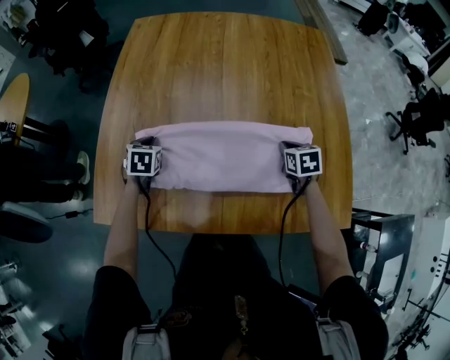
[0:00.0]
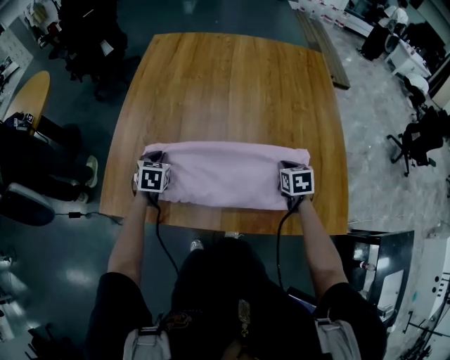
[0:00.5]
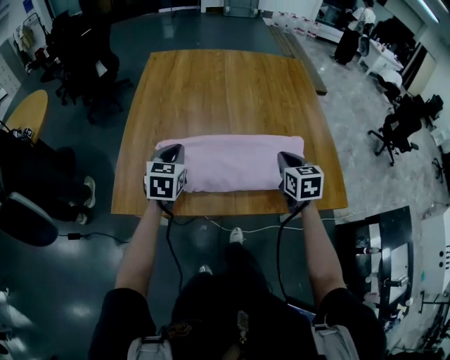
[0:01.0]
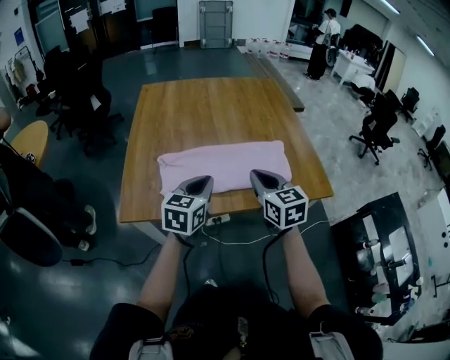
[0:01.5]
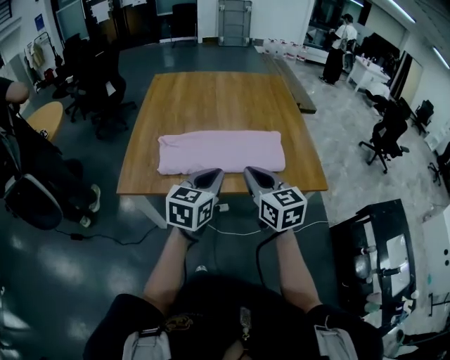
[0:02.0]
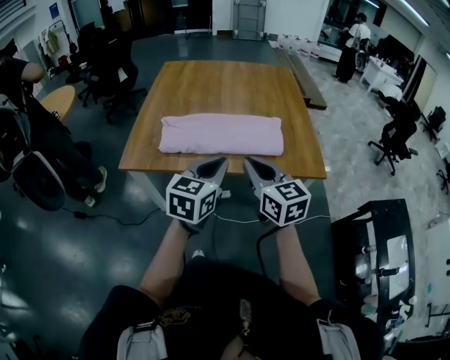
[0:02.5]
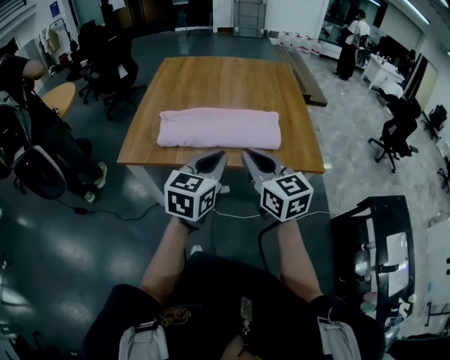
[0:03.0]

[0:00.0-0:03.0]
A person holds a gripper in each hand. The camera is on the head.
0:00.0 to 0:01.5: The right gripper heads backward, upward and to the left, covering approximately 40 cm, and angles its fingers upward, by about 40 degrees. The left gripper heads backward, upward and to the right, covering some 40 cm, and points its fingers approximately 30 degrees further upward.
0:01.5 to 0:03.0: The left gripper travels backward, to the right and upward by some 20 cm. The right gripper travels backward and upward by roughly 15 cm.

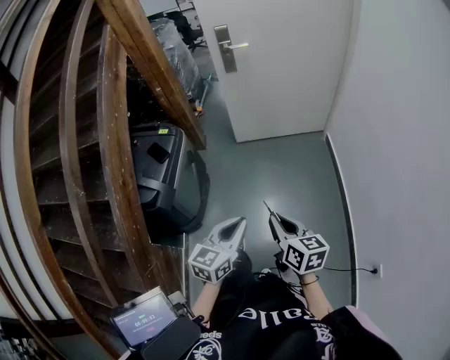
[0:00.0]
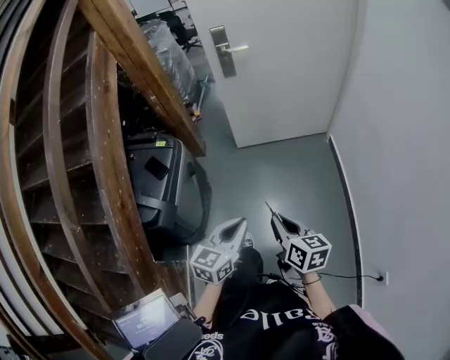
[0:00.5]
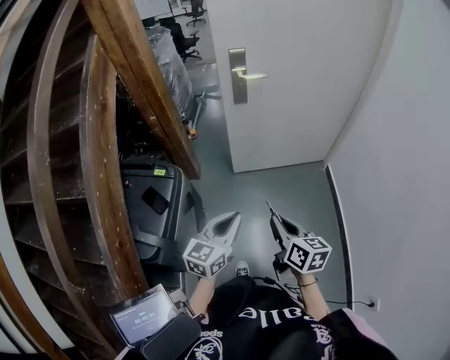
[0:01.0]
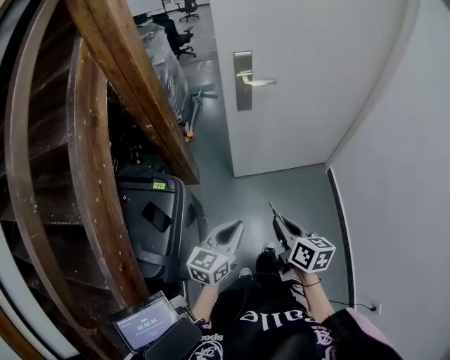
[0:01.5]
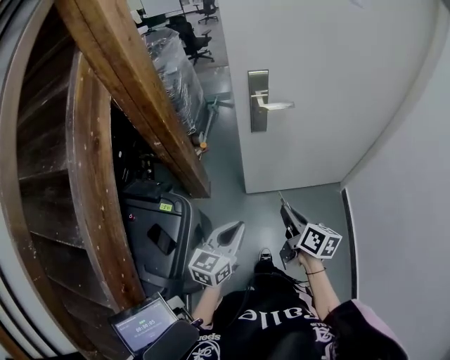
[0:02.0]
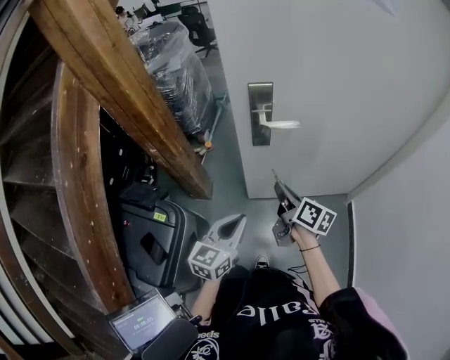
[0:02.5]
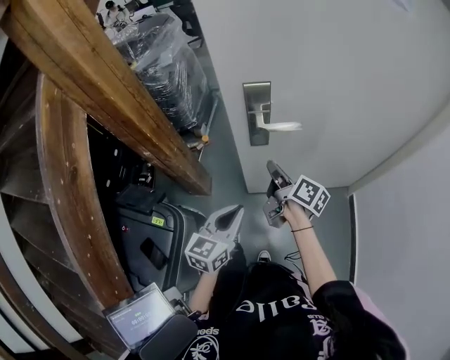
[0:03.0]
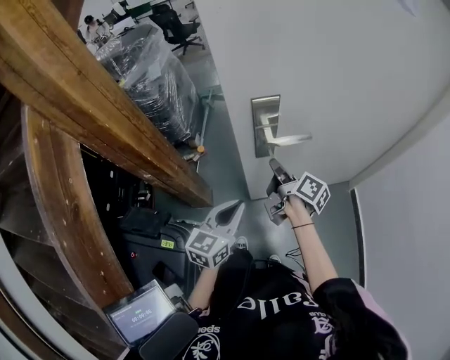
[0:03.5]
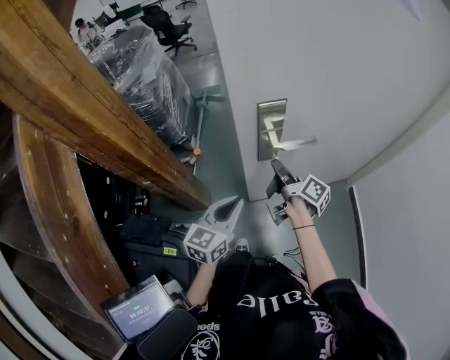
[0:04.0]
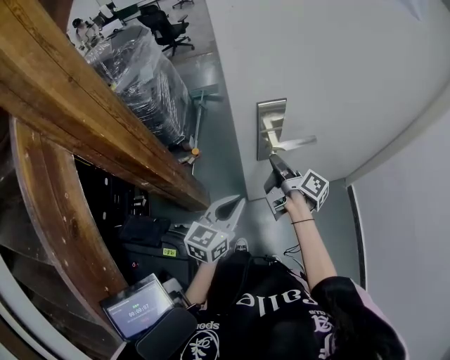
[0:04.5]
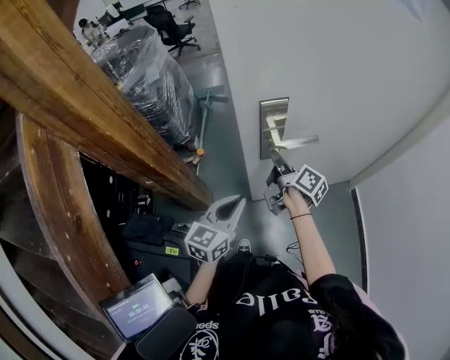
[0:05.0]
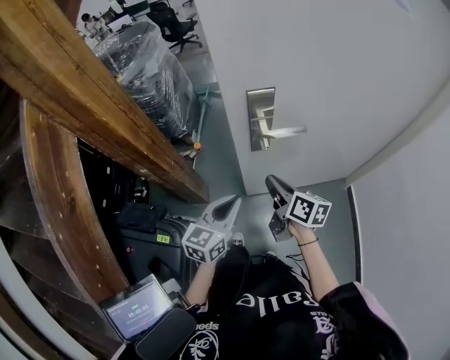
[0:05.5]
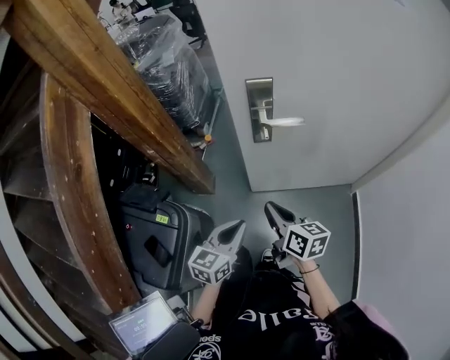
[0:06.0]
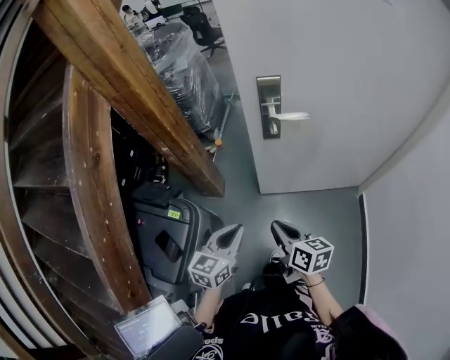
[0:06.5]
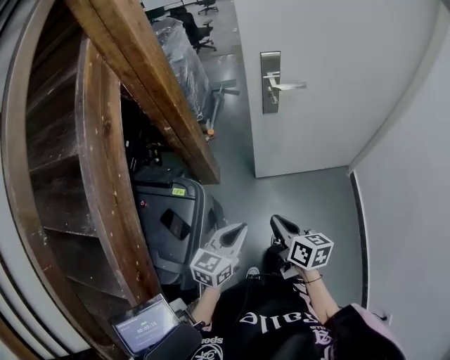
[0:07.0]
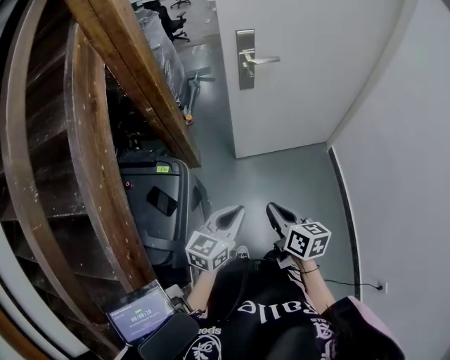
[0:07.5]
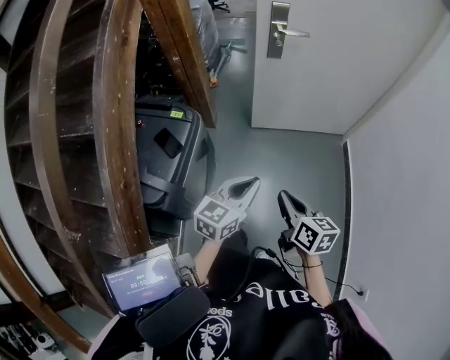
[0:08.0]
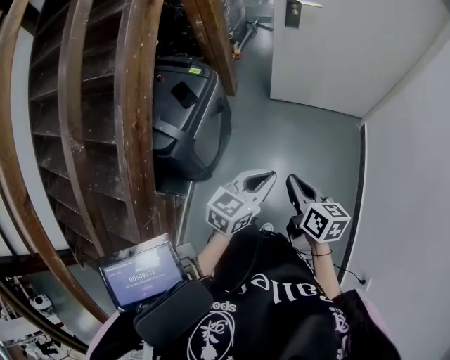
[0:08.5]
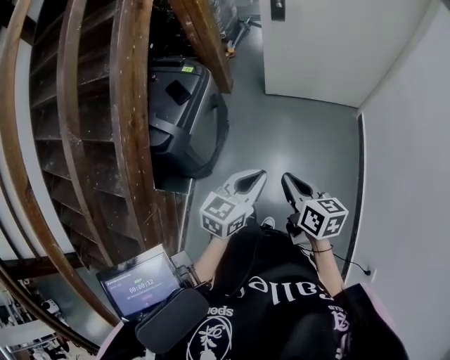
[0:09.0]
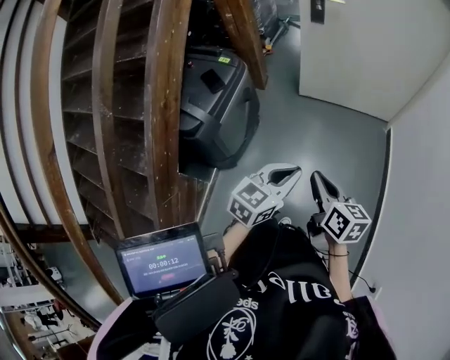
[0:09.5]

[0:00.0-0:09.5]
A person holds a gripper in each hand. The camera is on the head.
0:00.0 to 0:02.0: The pair of grippers is taken forward, roughly 50 cm.
0:02.0 to 0:04.0: The grippers both shift forward by roughly 30 cm. The right gripper rotates roughly 40 degrees.
0:04.0 to 0:05.5: The right gripper travels backward by some 10 cm, and rotates about 40 degrees.
0:05.5 to 0:07.5: Both grippers move backward, about 40 cm.
0:07.5 to 0:09.5: Both grippers travel together backward and to the right, roughly 30 cm.

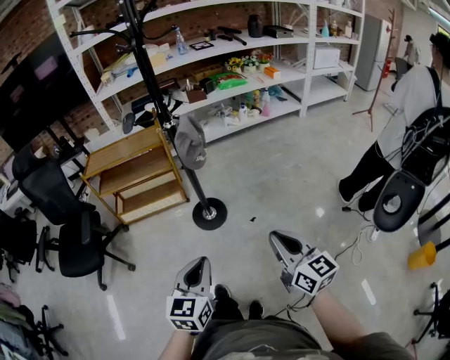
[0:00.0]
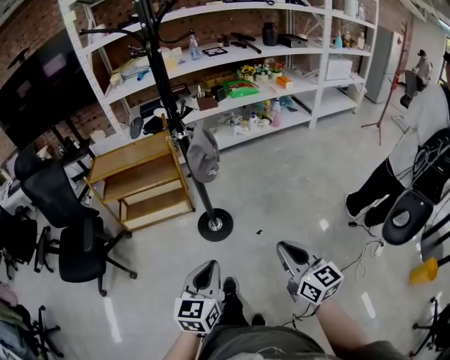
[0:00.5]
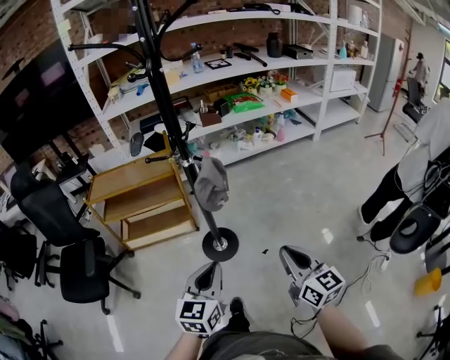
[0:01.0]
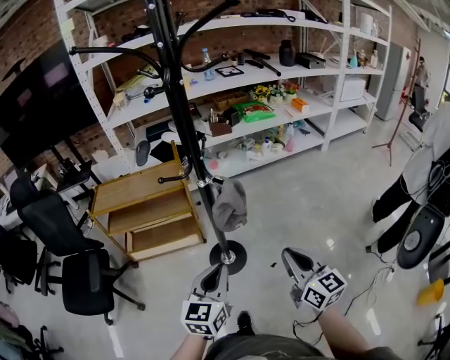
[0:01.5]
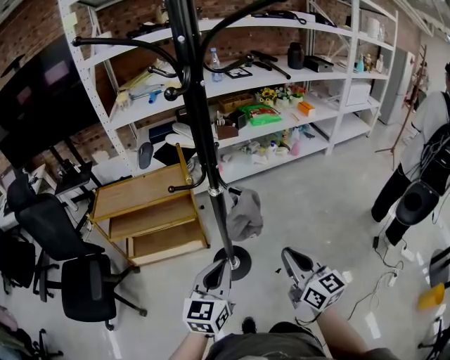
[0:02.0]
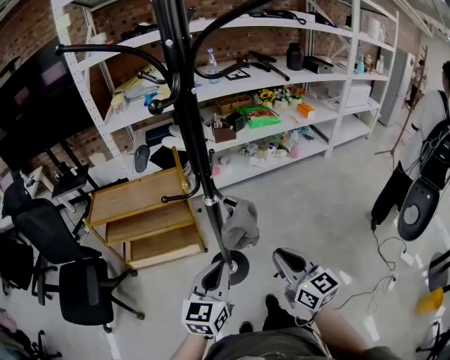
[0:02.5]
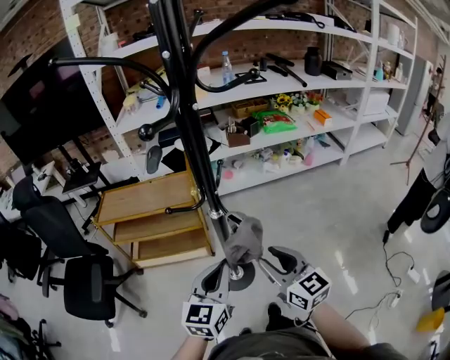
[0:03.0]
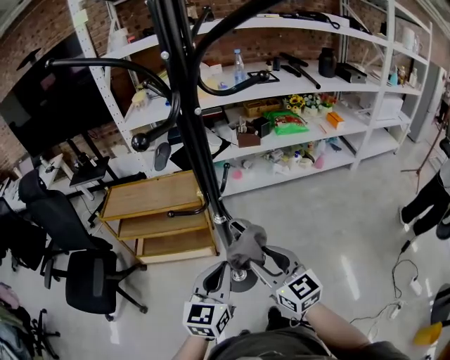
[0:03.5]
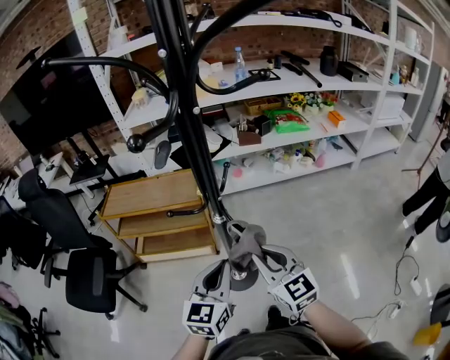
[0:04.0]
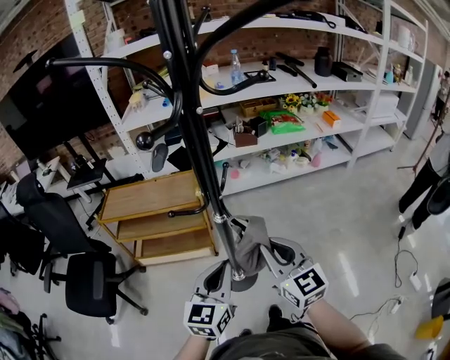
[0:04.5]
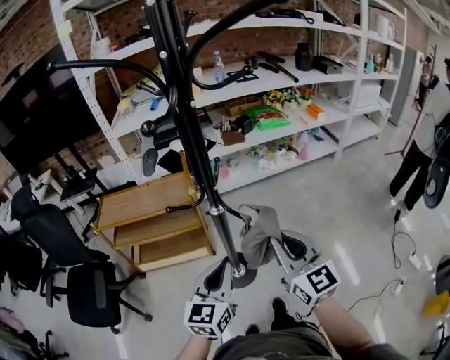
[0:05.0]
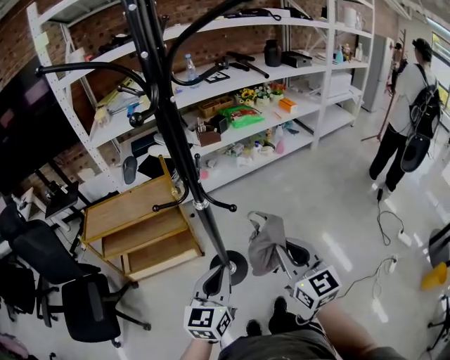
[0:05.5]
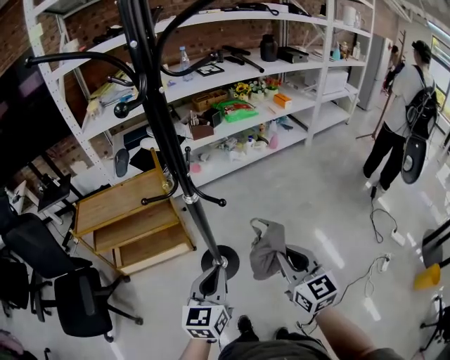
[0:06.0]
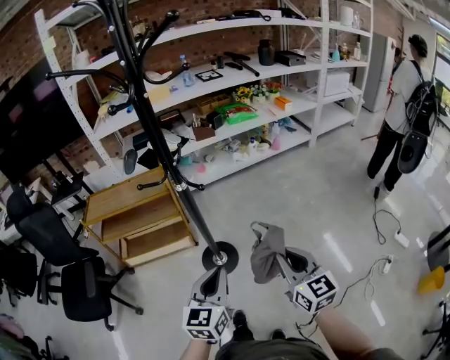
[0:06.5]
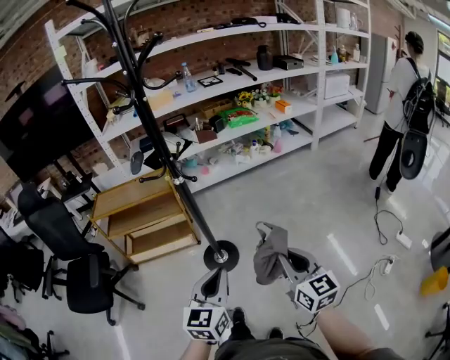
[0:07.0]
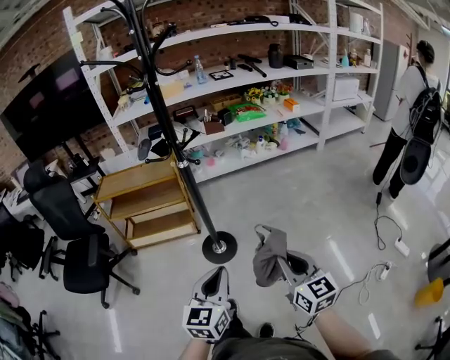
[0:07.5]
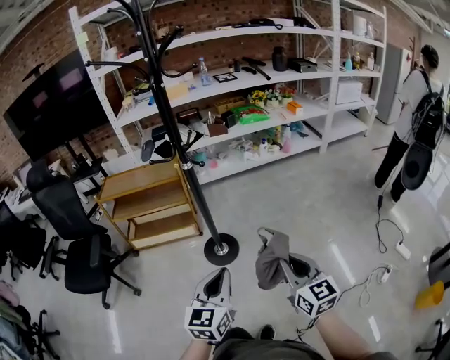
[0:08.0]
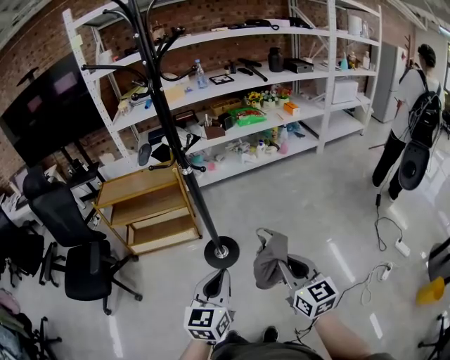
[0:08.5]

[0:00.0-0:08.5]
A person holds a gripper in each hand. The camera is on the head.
0:00.0 to 0:02.0: The two grippers go about 30 cm forward.
0:02.0 to 0:04.0: The left gripper moves forward, approximately 10 cm. The right gripper shifts some 15 cm forward and to the left, swivels some 30 degrees, and opens, then closes once more.
0:04.0 to 0:06.5: The left gripper travels backward by some 20 cm, while the right gripper is displaced backward and to the right by roughly 25 cm, and changes its angle by some 20 degrees.
0:06.5 to 0:08.5: Both grippers travel together backward, some 10 cm.

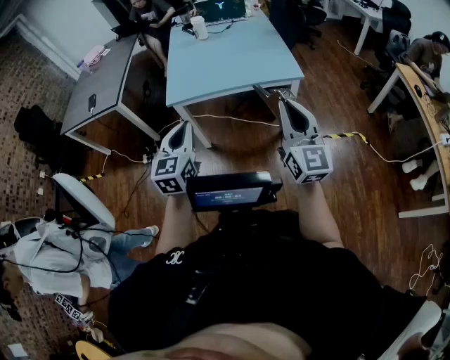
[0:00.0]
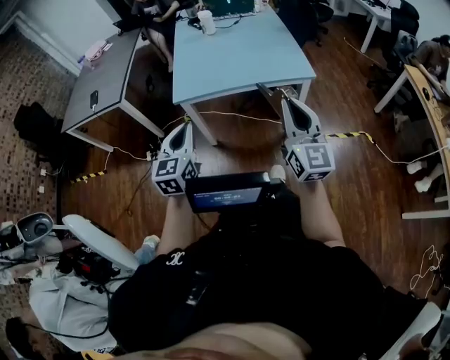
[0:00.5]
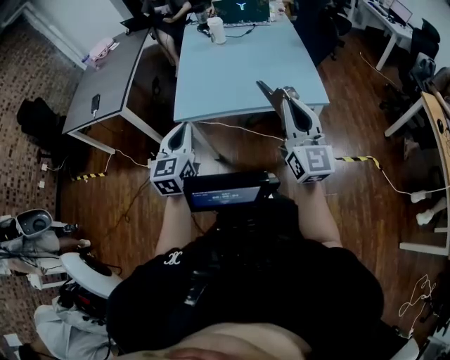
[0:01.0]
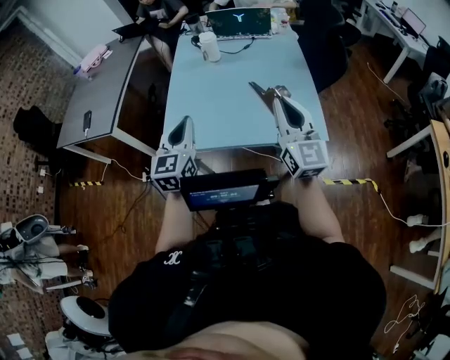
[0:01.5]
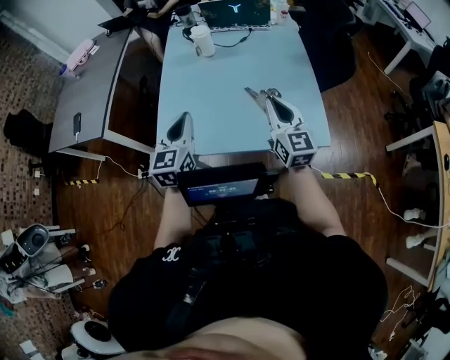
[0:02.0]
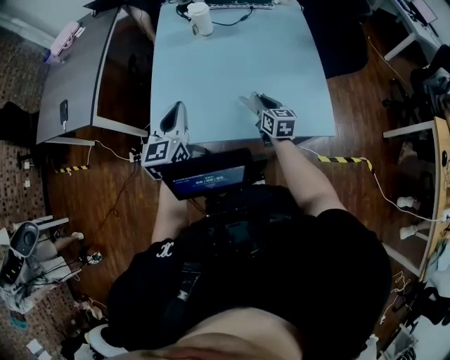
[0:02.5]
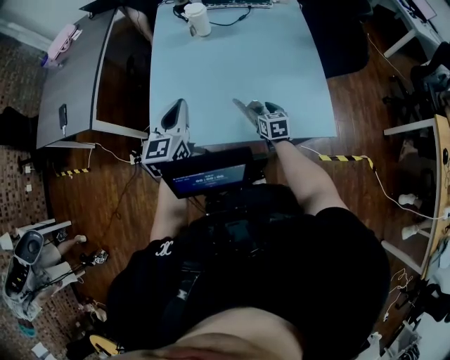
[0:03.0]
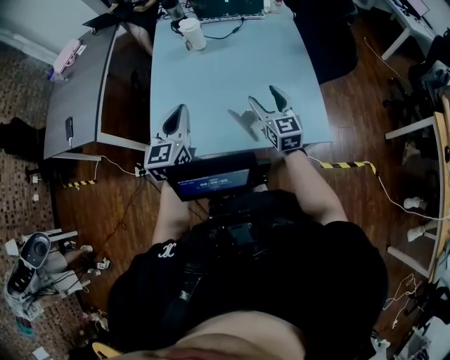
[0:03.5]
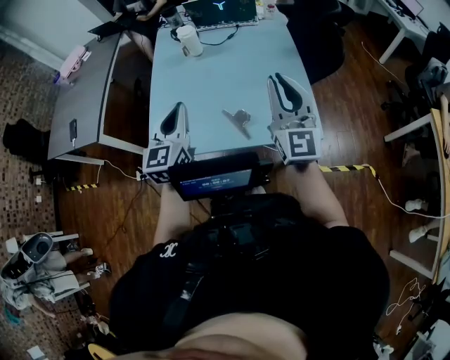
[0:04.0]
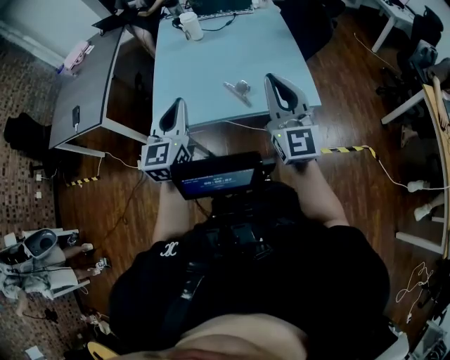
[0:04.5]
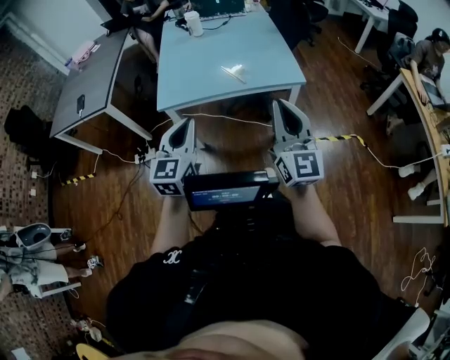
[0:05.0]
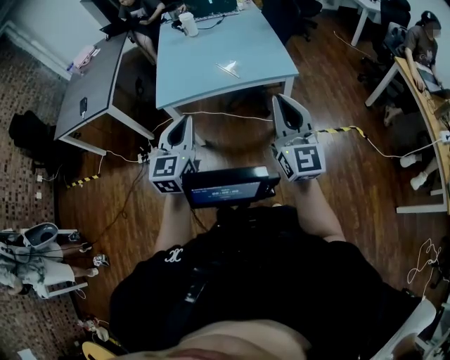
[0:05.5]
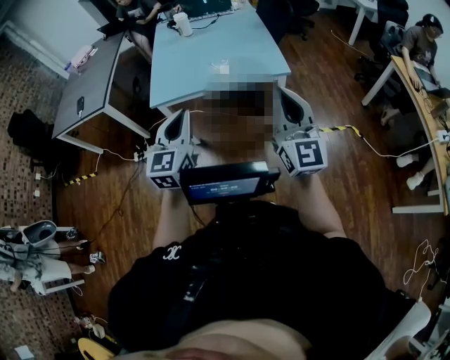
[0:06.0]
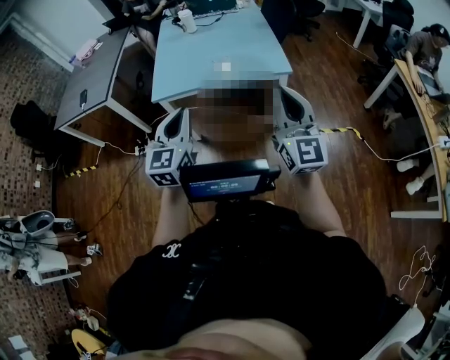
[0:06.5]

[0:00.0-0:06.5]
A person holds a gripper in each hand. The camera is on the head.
0:00.0 to 0:02.0: The two grippers travel together, forward, some 50 cm.
0:02.0 to 0:04.5: The two grippers go roughly 15 cm backward. The right gripper travels downward and back again, about 30 cm each way, turns by some 20 degrees, and opens, then closes again.
0:04.5 to 0:06.5: The two grippers go approximately 30 cm backward.
